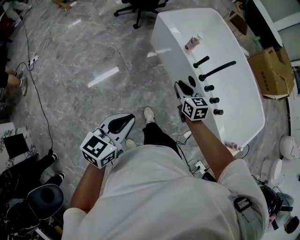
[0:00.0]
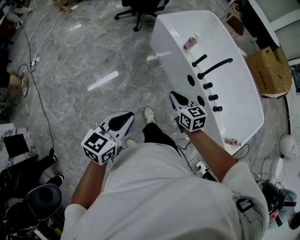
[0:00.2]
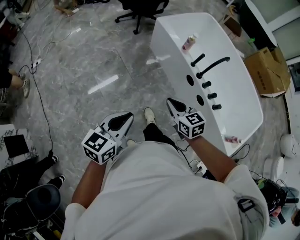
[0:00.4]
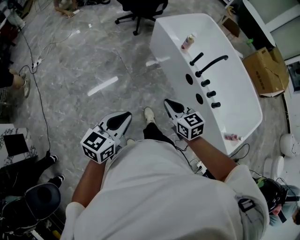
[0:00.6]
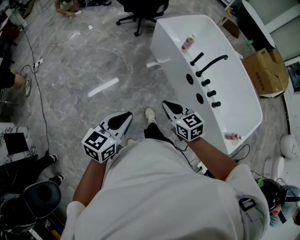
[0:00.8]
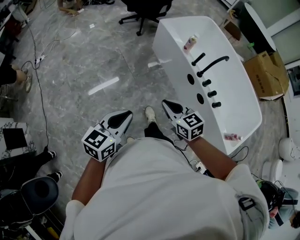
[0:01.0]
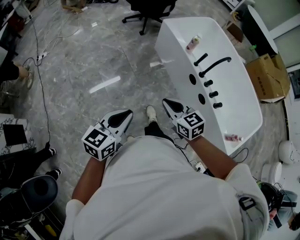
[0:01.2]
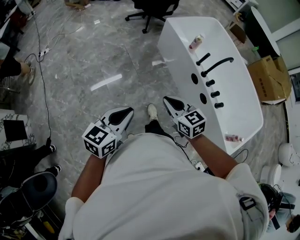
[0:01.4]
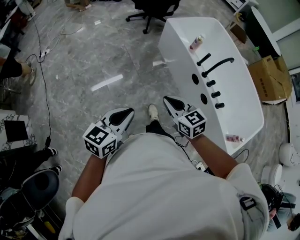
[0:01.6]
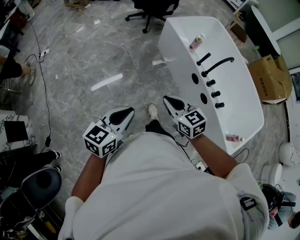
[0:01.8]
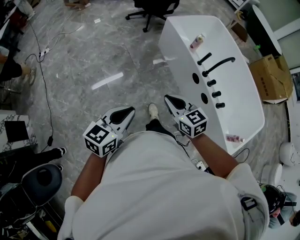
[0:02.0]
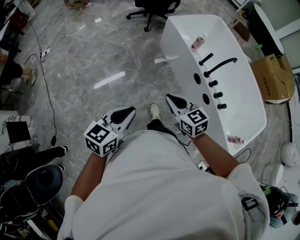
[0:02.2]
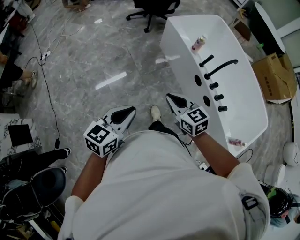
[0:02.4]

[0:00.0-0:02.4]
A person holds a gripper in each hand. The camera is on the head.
0:00.0 to 0:01.2: The left gripper heads backward, covering some 10 cm, while the right gripper moves backward and to the left, approximately 25 cm, and turns by approximately 20 degrees.
0:01.2 to 0:02.4: The grippers both shift forward by approximately 5 cm.

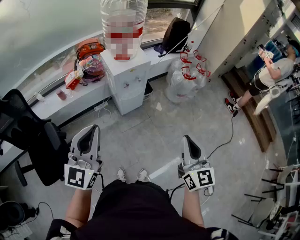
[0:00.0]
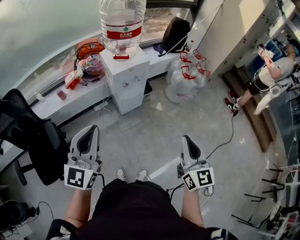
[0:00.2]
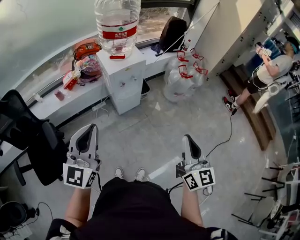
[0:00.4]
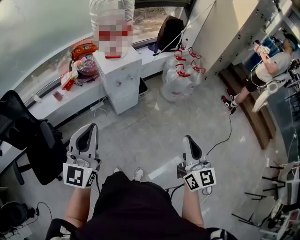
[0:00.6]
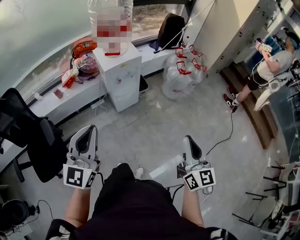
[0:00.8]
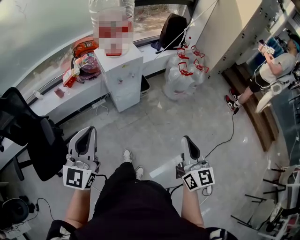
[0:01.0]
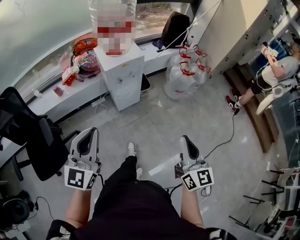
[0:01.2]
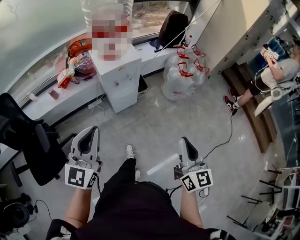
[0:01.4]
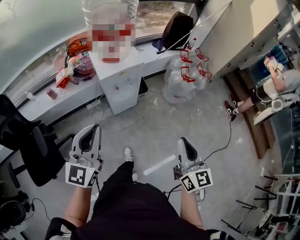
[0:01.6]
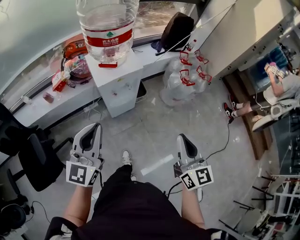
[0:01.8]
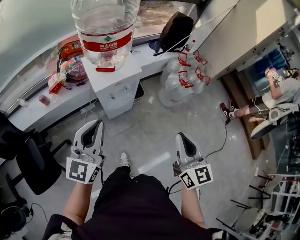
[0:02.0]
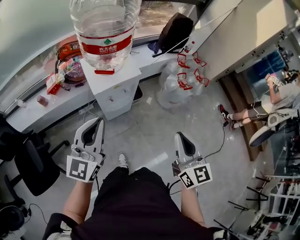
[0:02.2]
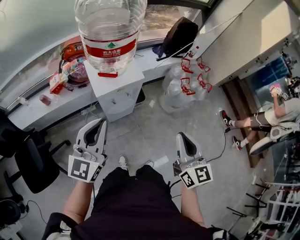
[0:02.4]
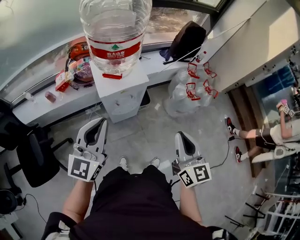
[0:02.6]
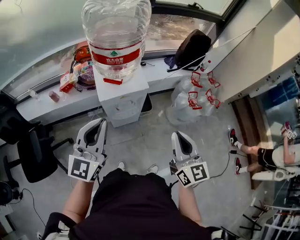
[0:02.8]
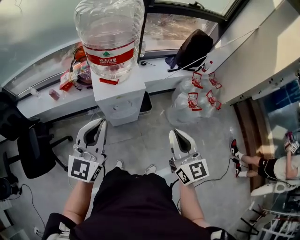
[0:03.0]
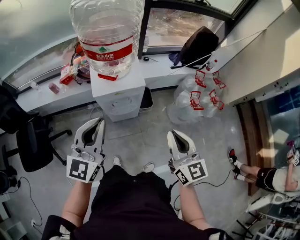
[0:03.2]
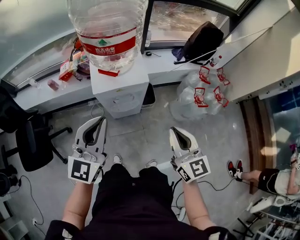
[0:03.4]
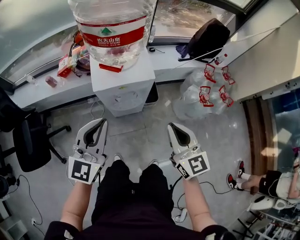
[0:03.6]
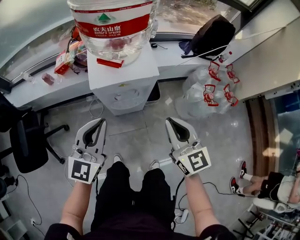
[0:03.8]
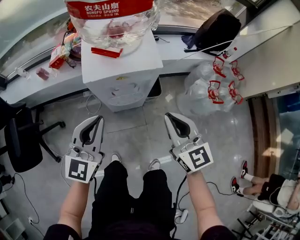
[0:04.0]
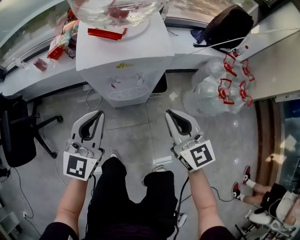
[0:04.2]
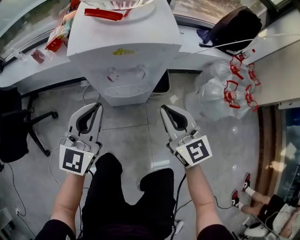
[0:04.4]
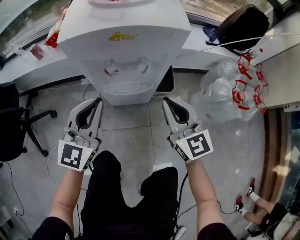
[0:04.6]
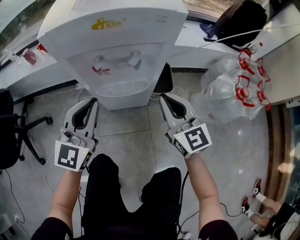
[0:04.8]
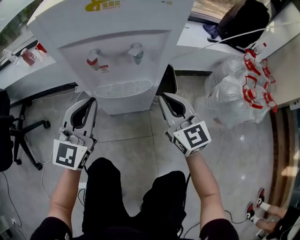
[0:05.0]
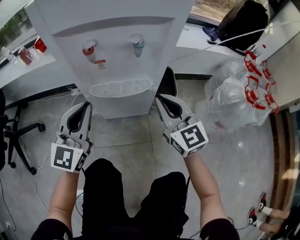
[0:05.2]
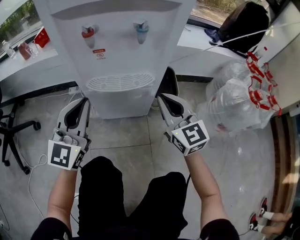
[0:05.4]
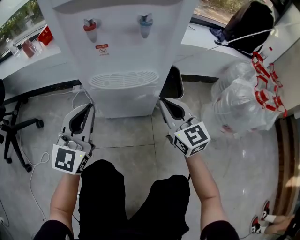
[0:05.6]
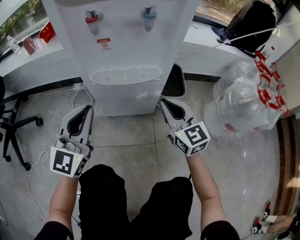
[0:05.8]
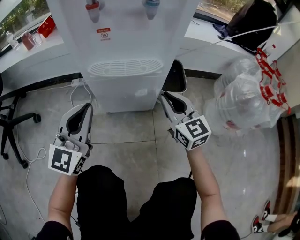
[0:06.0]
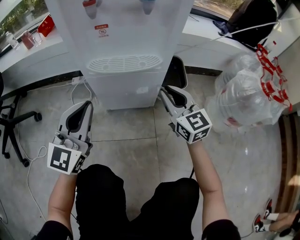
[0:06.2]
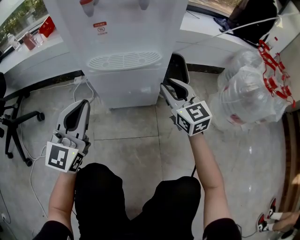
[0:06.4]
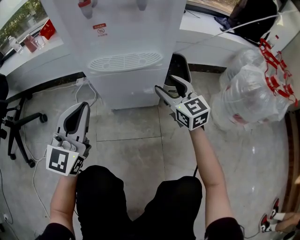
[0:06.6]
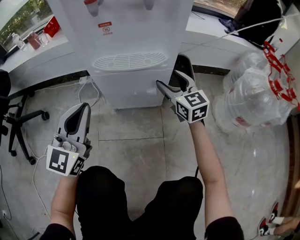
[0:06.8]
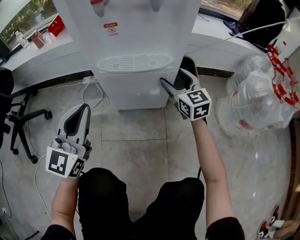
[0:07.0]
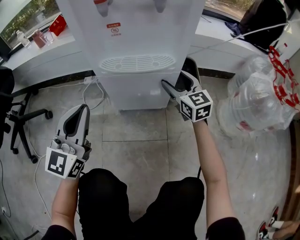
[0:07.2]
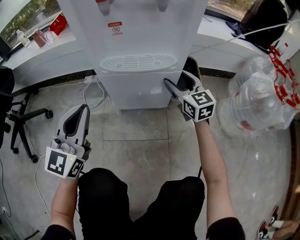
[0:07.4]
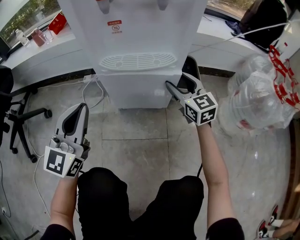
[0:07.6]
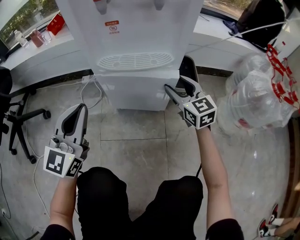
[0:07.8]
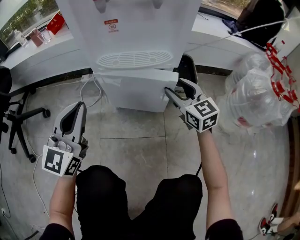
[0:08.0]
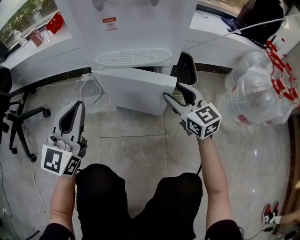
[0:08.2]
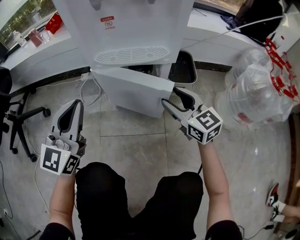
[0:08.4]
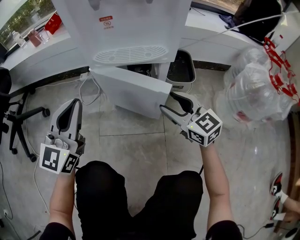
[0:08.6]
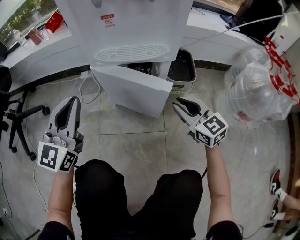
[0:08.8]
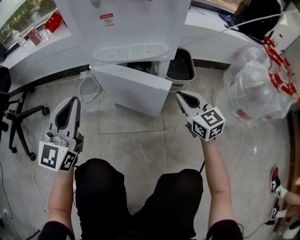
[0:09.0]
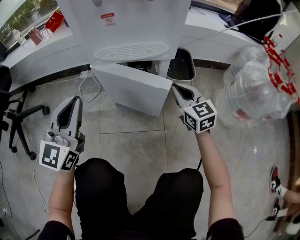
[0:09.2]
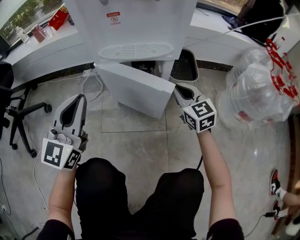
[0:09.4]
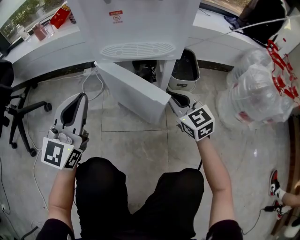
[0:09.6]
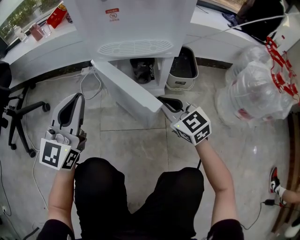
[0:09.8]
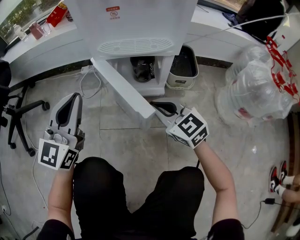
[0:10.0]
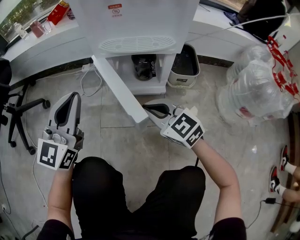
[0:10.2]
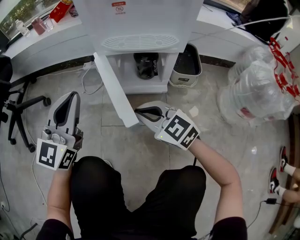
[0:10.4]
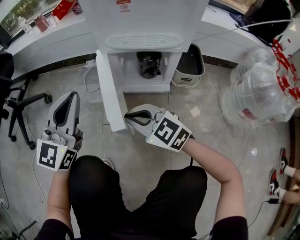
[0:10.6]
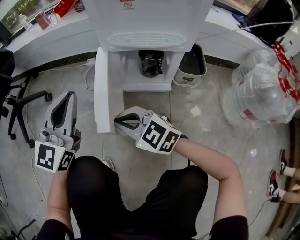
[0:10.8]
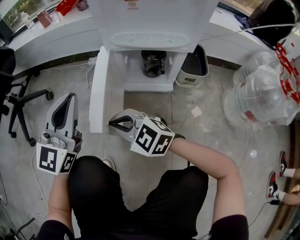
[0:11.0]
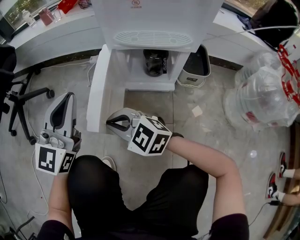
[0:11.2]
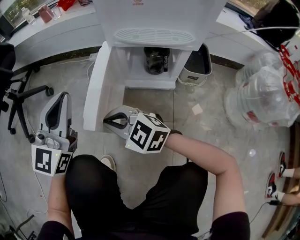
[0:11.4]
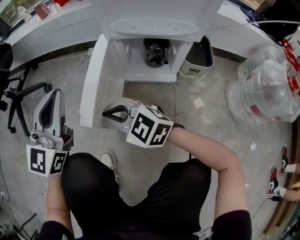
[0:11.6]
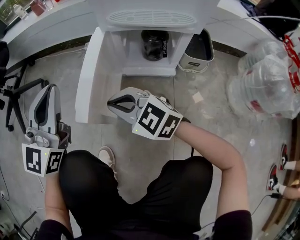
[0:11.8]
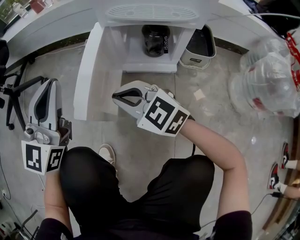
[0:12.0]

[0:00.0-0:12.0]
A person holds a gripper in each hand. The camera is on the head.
0:00.0 to 0:01.6: The right gripper is displaced forward and to the right by approximately 10 cm; the left gripper goes roughly 15 cm forward, to the right and downward.
0:01.6 to 0:03.0: The right gripper travels forward by about 25 cm; the left gripper travels forward and to the right by some 20 cm.
0:03.0 to 0:04.4: Both grippers move downward, about 35 cm. The right gripper changes its angle by roughly 20 degrees.
0:04.4 to 0:06.0: The grippers both shift downward by roughly 30 cm.
0:06.0 to 0:07.6: The right gripper moves forward, about 5 cm, and opens.
0:07.6 to 0:09.0: The right gripper moves backward, approximately 10 cm, and closes.
0:09.0 to 0:10.4: The right gripper travels to the left by approximately 20 cm, and changes its angle by roughly 30 degrees.
0:10.4 to 0:12.0: The right gripper moves to the left, approximately 10 cm.

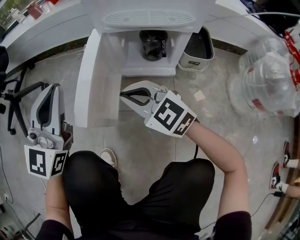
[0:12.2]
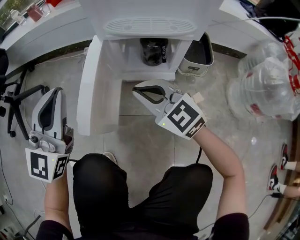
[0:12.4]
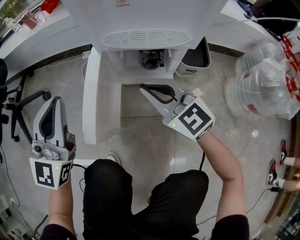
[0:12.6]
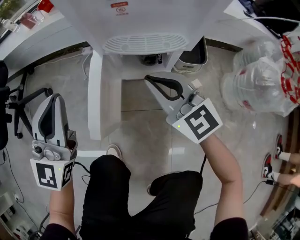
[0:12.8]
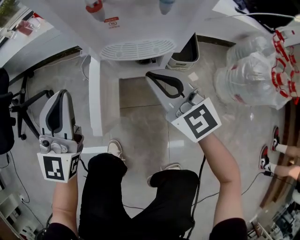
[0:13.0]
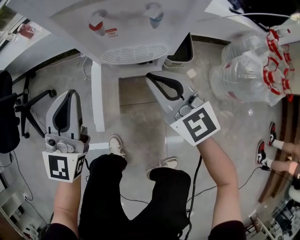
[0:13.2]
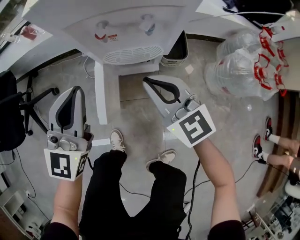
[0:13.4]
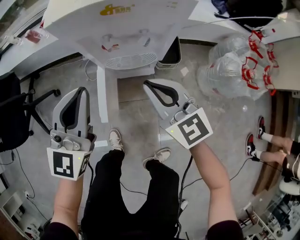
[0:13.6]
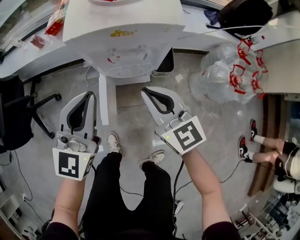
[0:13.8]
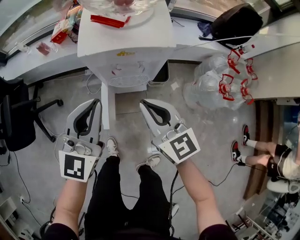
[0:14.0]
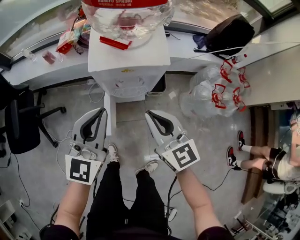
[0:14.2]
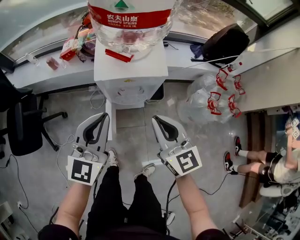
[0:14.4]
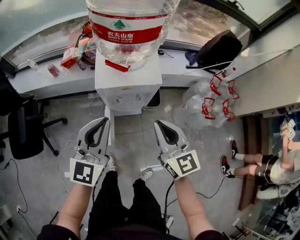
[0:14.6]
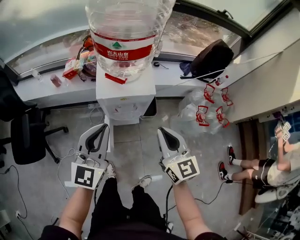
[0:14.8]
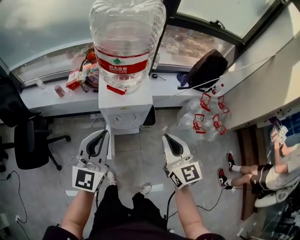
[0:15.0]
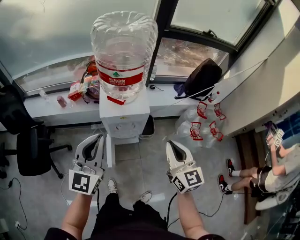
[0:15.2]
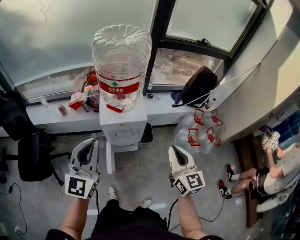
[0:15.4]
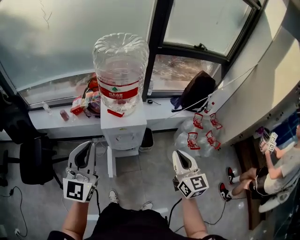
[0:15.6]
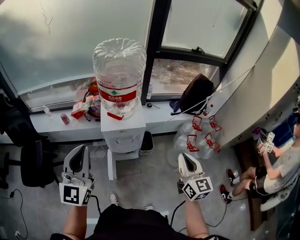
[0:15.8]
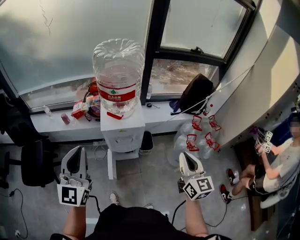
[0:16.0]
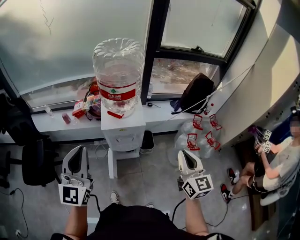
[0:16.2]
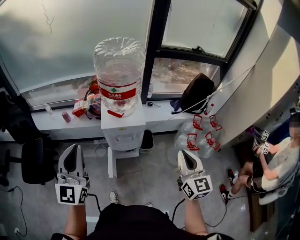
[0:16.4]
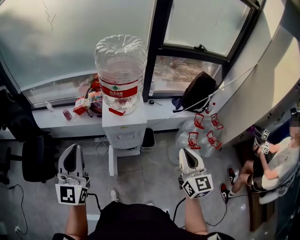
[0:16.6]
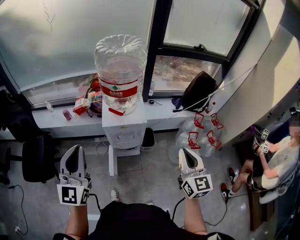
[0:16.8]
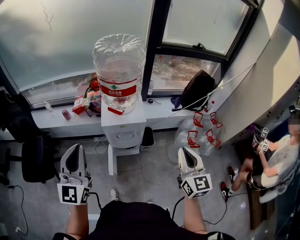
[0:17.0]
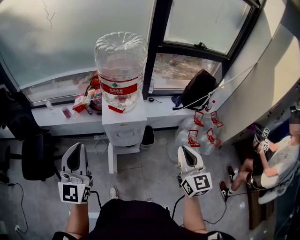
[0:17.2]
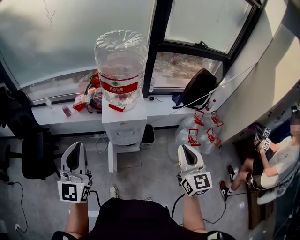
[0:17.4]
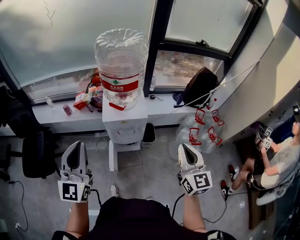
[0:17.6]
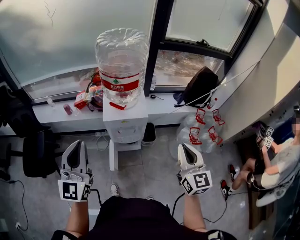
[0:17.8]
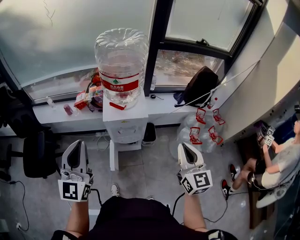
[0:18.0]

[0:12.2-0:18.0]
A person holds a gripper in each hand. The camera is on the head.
0:12.2 to 0:13.6: Both grippers move upward, about 30 cm. The right gripper rotates roughly 30 degrees.
0:13.6 to 0:15.0: Both grippers travel together upward, about 30 cm. The right gripper turns by some 20 degrees.
0:15.0 to 0:16.6: The left gripper travels upward, backward and to the left by some 15 cm. The right gripper goes about 15 cm to the right, upward and backward.
0:16.6 to 0:18.0: There are only small adjustments of the grippers.

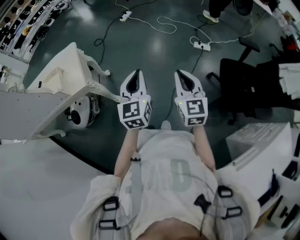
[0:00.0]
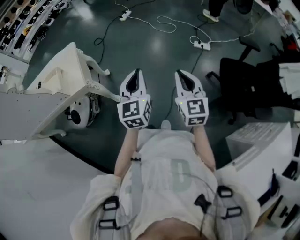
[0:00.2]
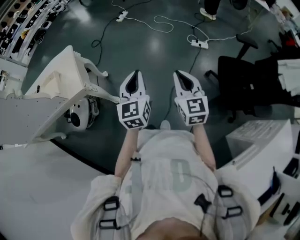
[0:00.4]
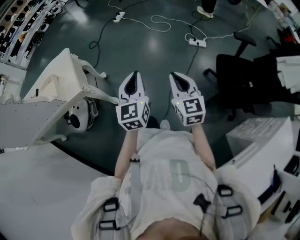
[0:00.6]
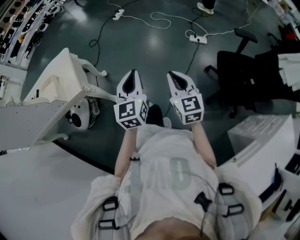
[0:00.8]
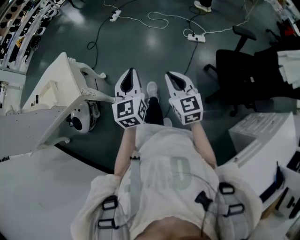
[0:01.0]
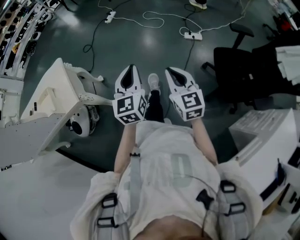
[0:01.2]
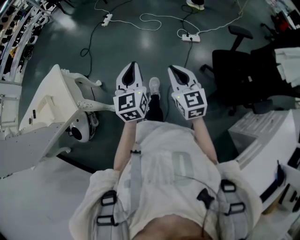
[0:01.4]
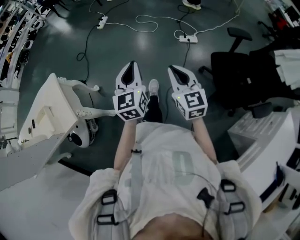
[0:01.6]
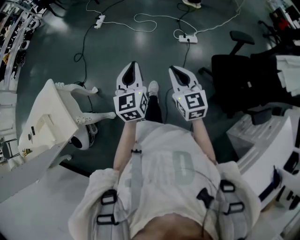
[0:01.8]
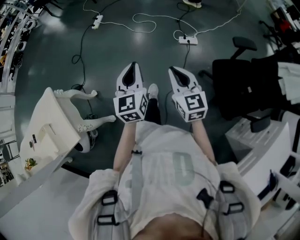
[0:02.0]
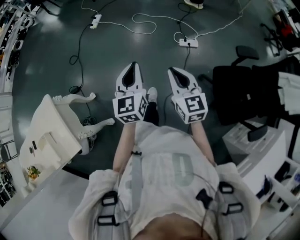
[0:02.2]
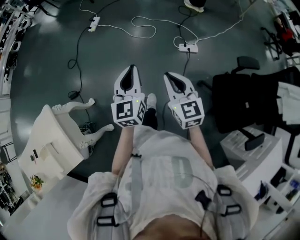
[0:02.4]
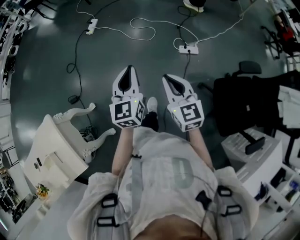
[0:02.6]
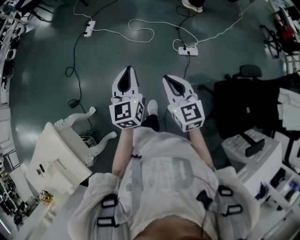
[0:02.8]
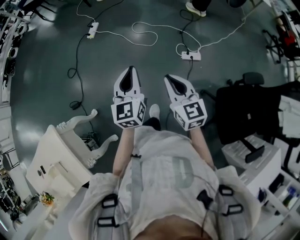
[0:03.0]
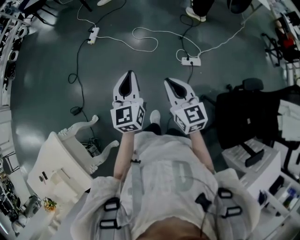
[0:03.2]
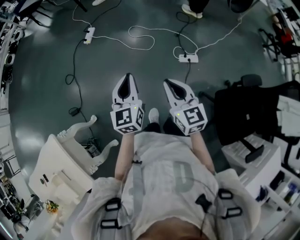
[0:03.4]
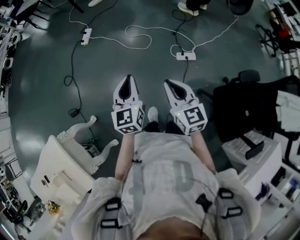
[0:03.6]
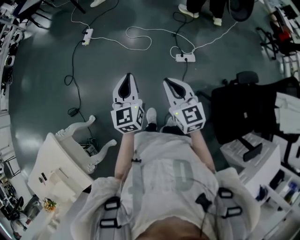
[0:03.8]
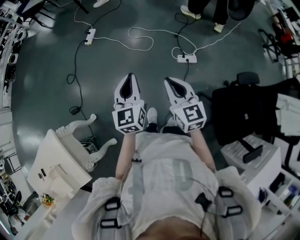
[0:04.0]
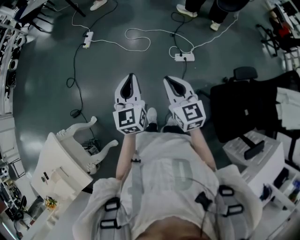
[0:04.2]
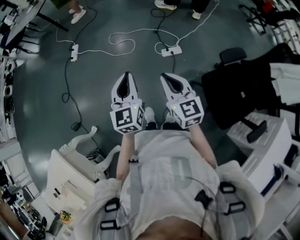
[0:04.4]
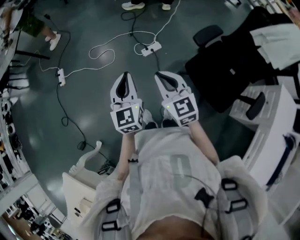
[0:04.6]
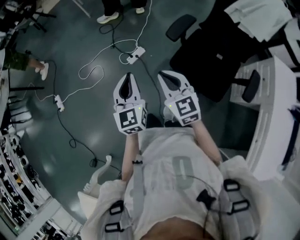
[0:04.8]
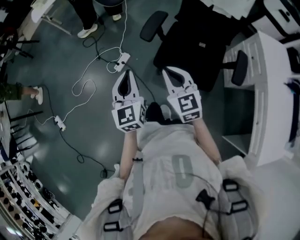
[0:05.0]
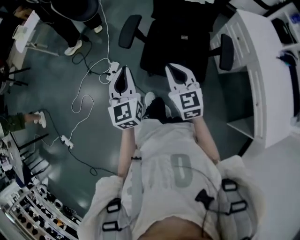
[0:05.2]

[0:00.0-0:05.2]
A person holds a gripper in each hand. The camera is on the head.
0:00.0 to 0:01.8: Both grippers move forward and to the right, some 25 cm.
0:01.8 to 0:03.4: The grippers both shift forward by roughly 35 cm.
0:03.4 to 0:05.2: The two grippers travel together, roughly 60 cm. The left gripper swivels roughly 60 degrees, while the right gripper turns by some 70 degrees.
